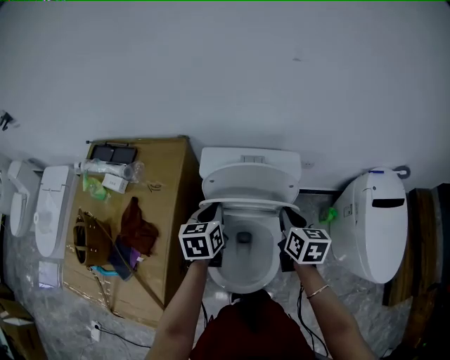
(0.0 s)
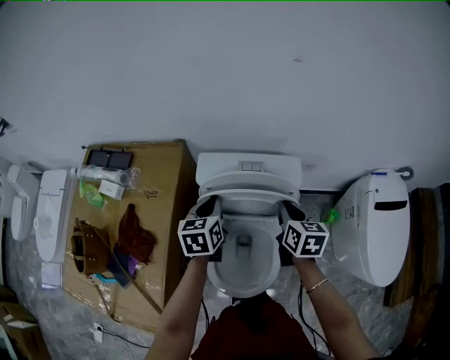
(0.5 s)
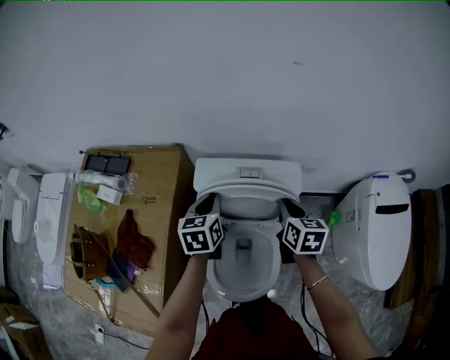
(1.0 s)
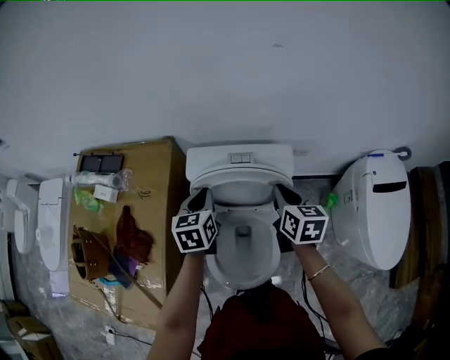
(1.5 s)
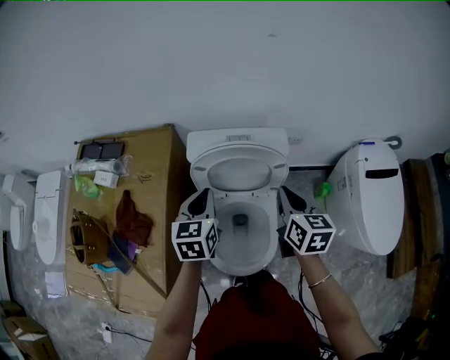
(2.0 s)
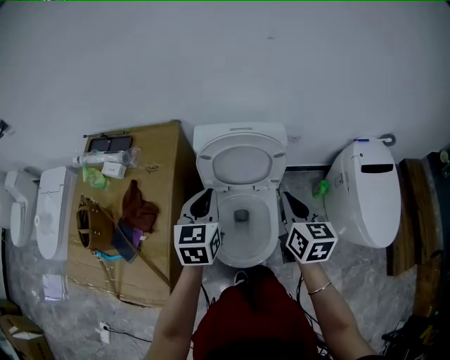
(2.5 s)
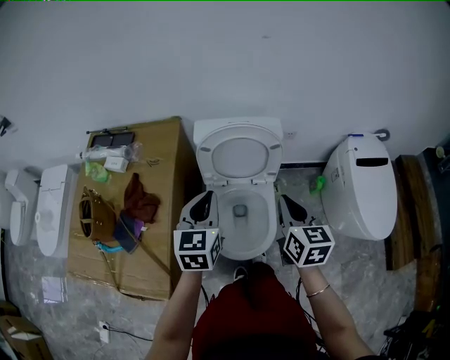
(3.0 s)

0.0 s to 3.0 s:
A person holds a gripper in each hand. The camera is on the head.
0.0 to 1.5 s: The grippers both shift forward by some 5 cm.
1.5 to 3.0 s: The left gripper is displaced backward and upward by approximately 25 cm. The right gripper goes some 25 cm backward.

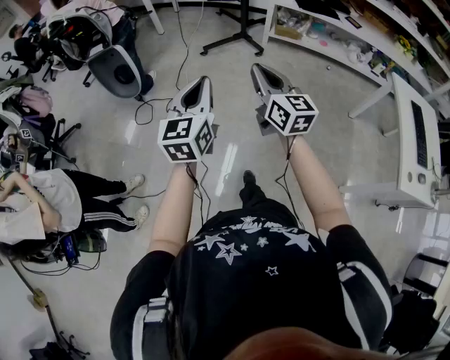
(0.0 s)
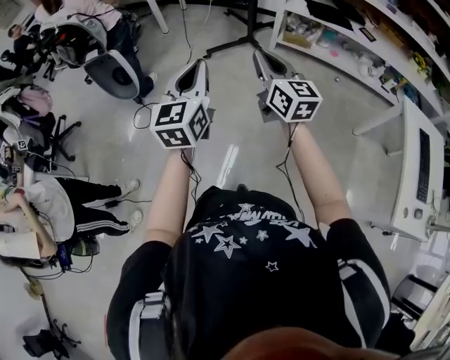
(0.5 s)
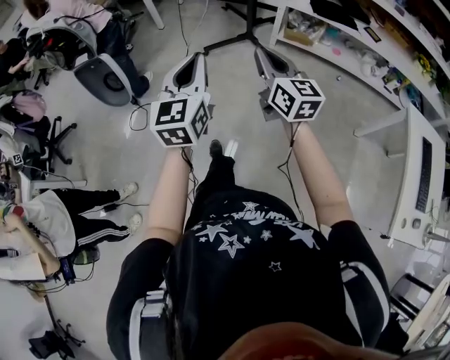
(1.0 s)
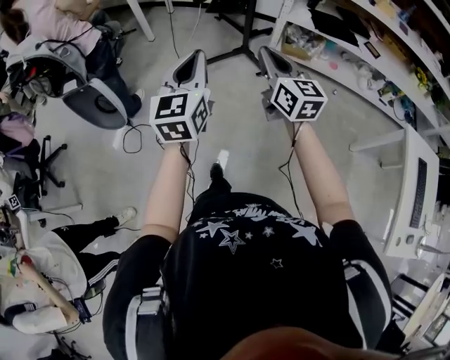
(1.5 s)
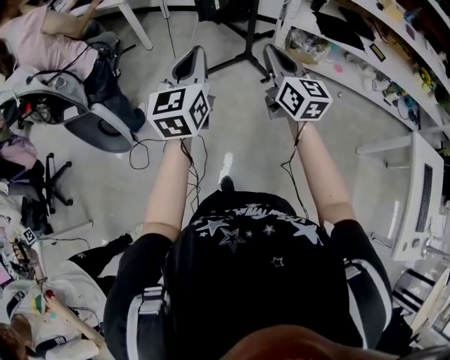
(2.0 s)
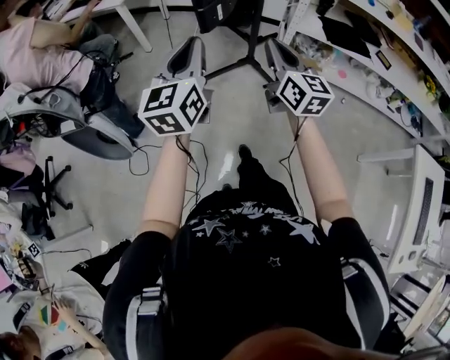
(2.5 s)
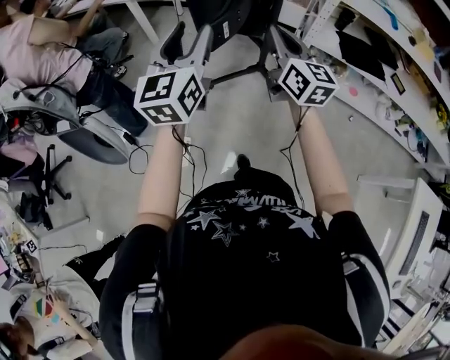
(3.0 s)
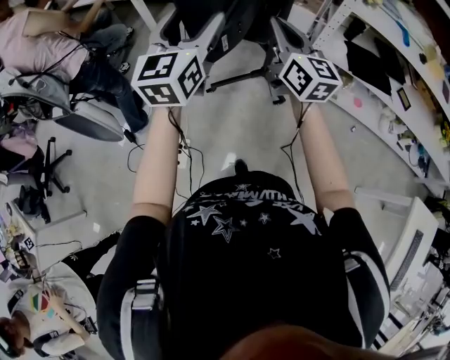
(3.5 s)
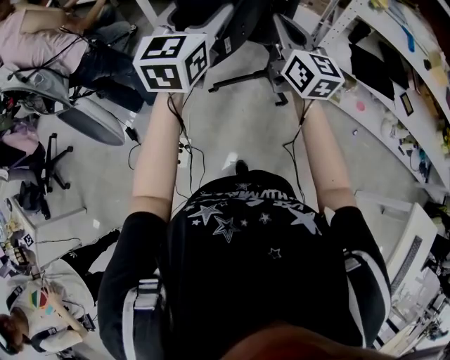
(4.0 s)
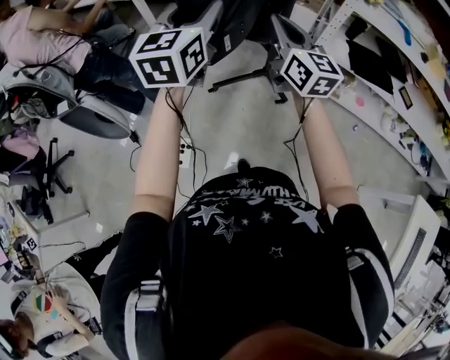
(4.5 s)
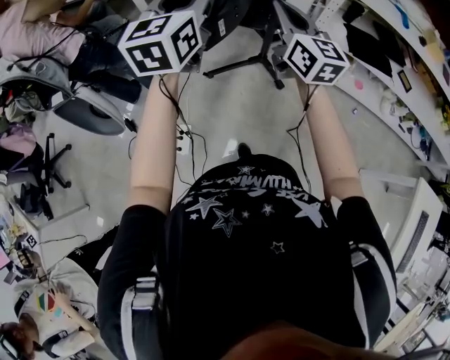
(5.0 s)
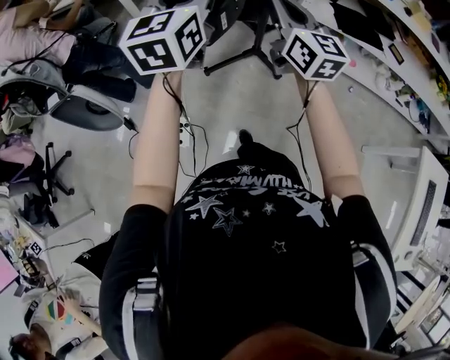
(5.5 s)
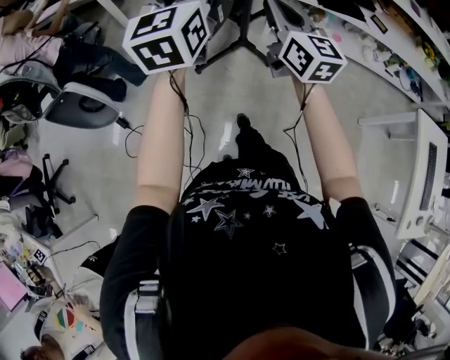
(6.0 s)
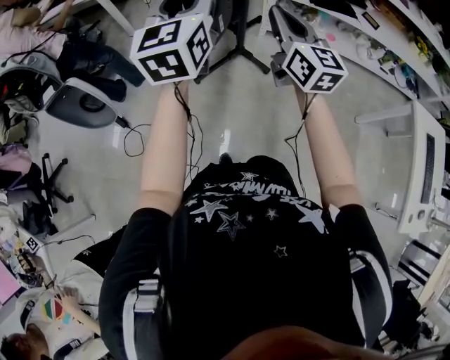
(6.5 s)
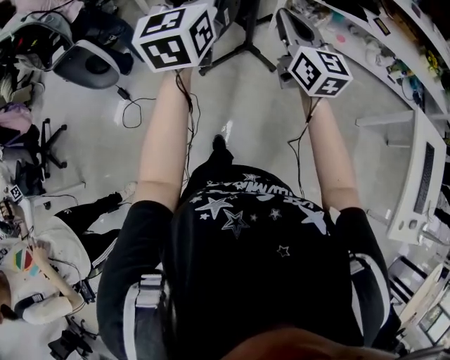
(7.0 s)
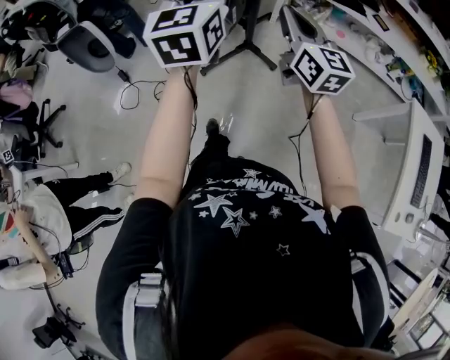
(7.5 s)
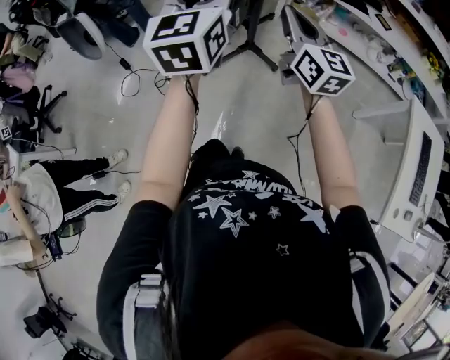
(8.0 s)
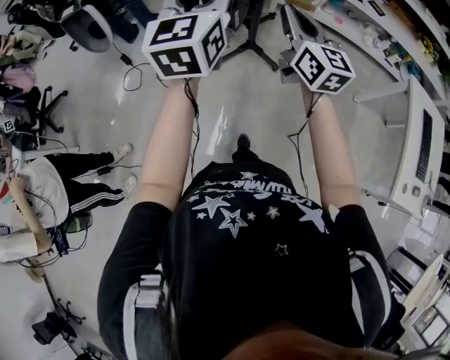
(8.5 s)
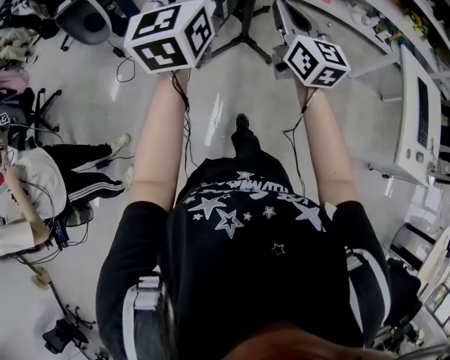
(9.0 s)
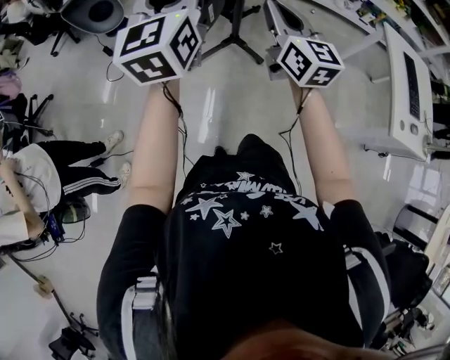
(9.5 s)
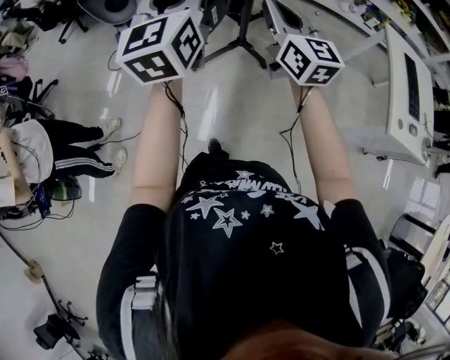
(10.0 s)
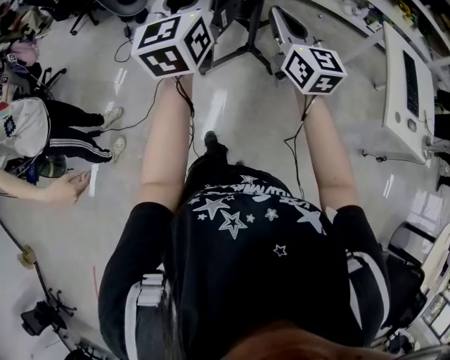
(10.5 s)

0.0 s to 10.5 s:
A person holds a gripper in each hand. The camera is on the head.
0.0 to 2.0 s: The two grippers travel together, forward, approximately 50 cm.
2.0 to 4.0 s: The two grippers go approximately 30 cm forward. The left gripper opens its fingers.
4.0 to 6.5 s: Both grippers travel together backward, approximately 25 cm. The left gripper closes its fingers.
6.5 to 8.5 s: The grippers both shift backward by about 35 cm.
8.5 to 10.5 s: Both grippers move backward, approximately 35 cm.

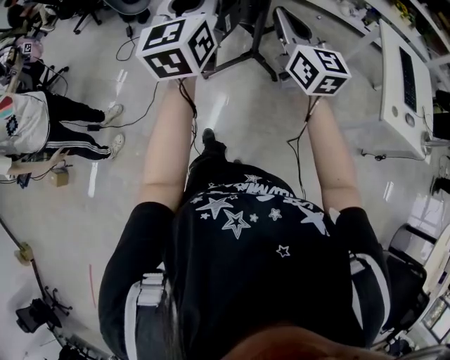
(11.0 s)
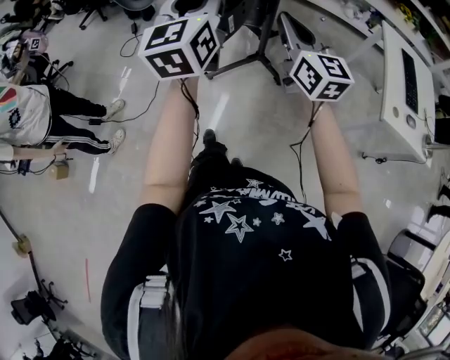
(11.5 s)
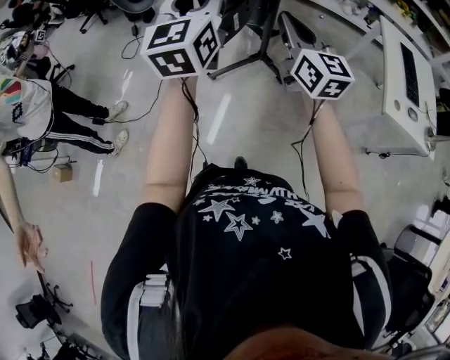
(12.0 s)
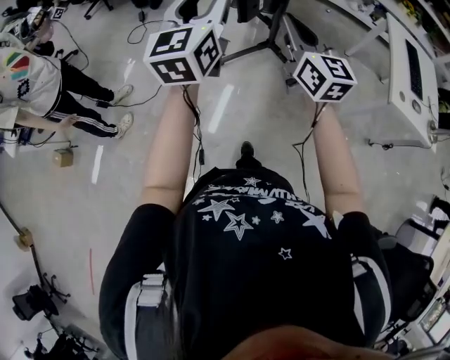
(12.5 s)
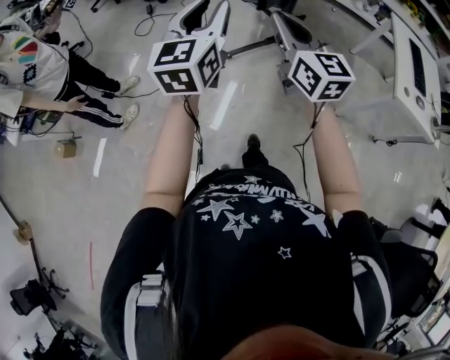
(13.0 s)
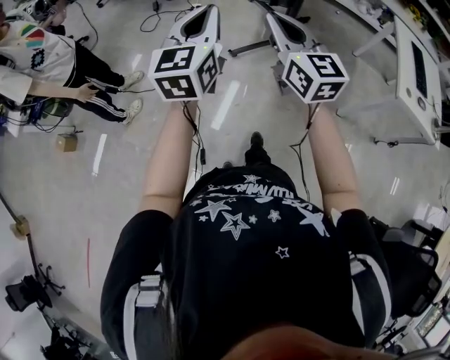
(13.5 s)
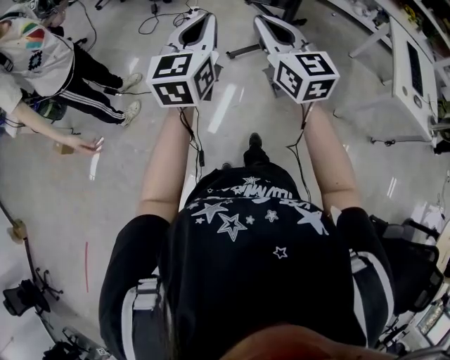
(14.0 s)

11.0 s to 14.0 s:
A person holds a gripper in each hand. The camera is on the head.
11.0 to 12.5 s: The two grippers go about 10 cm backward.
12.5 to 14.0 s: The right gripper moves to the left and backward, approximately 20 cm. The left gripper goes about 15 cm to the left, backward and downward, and closes up.

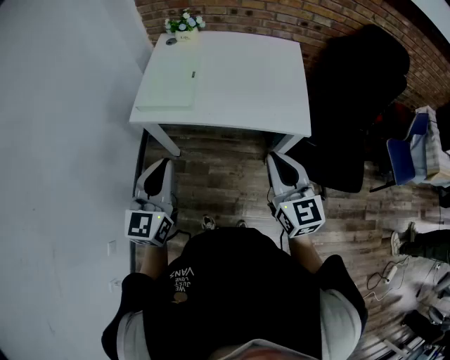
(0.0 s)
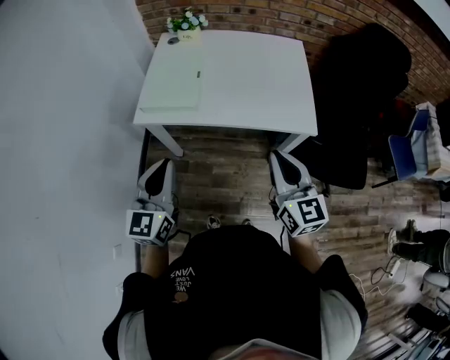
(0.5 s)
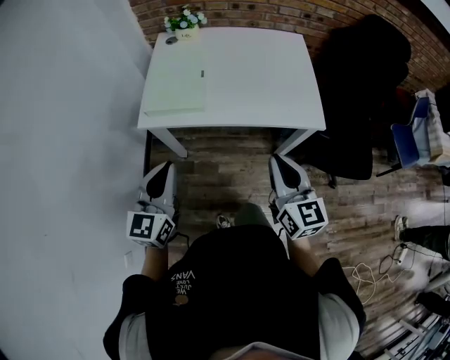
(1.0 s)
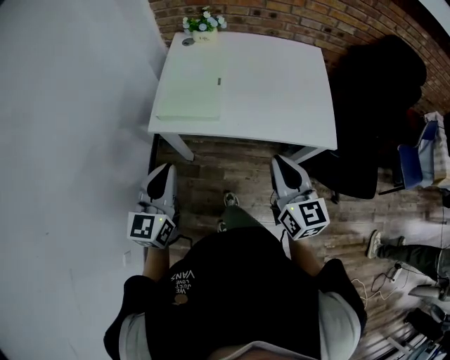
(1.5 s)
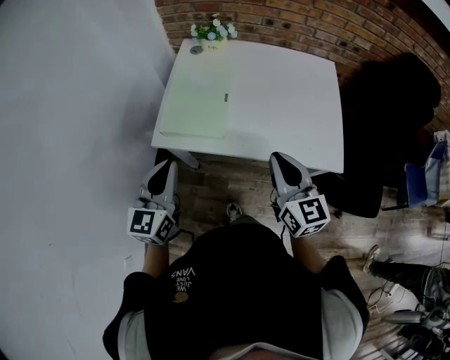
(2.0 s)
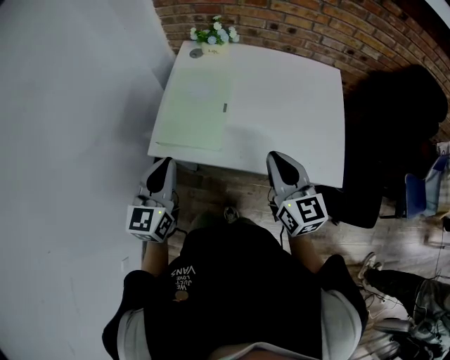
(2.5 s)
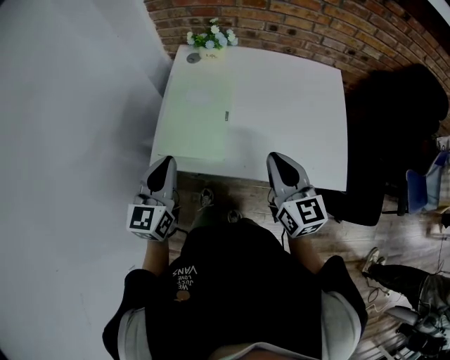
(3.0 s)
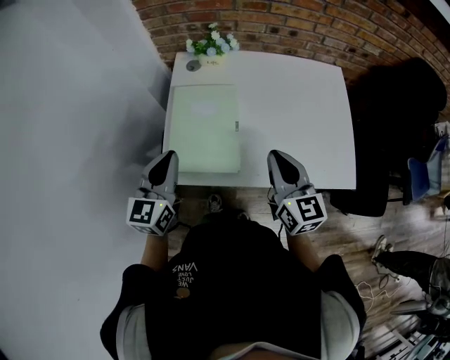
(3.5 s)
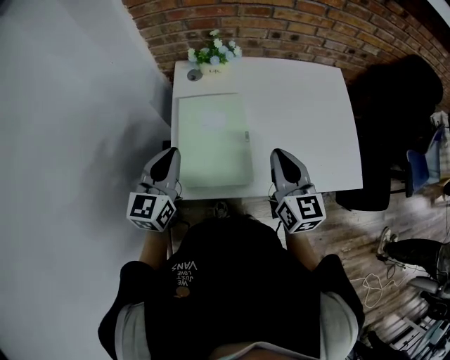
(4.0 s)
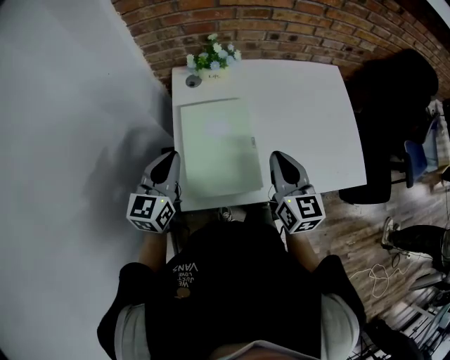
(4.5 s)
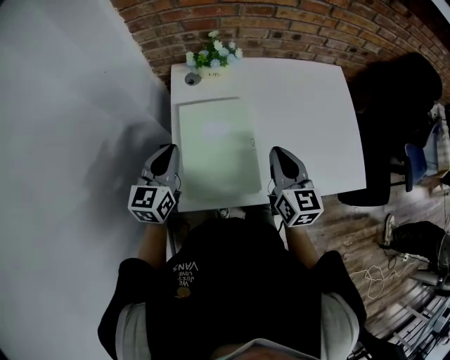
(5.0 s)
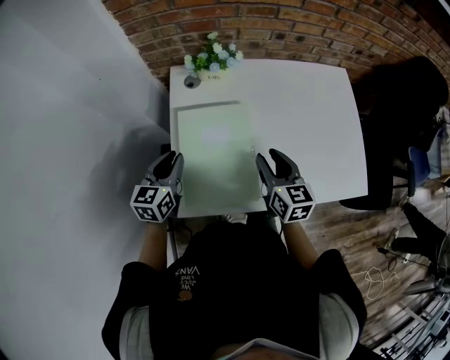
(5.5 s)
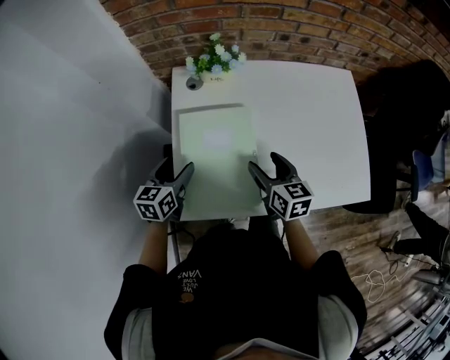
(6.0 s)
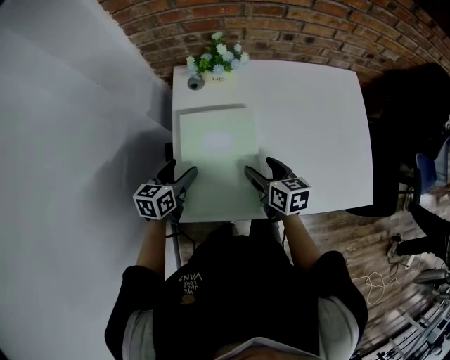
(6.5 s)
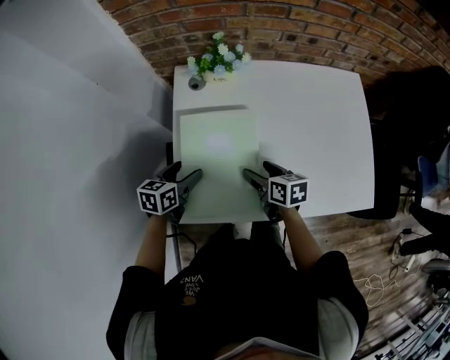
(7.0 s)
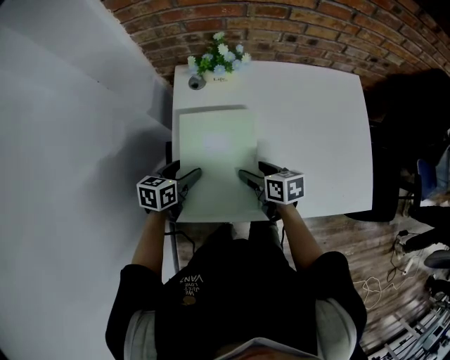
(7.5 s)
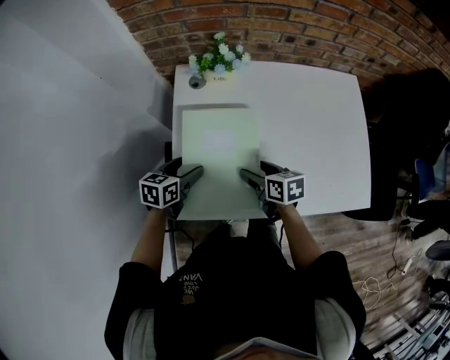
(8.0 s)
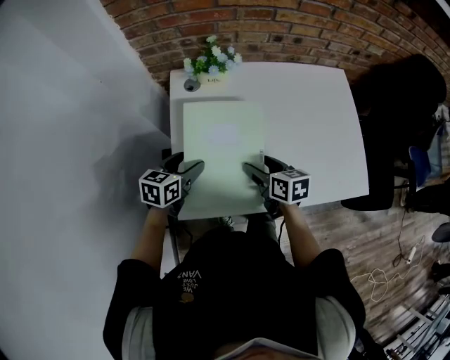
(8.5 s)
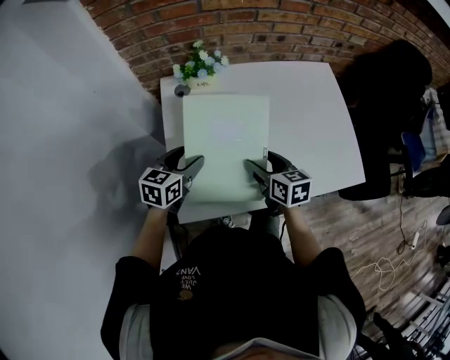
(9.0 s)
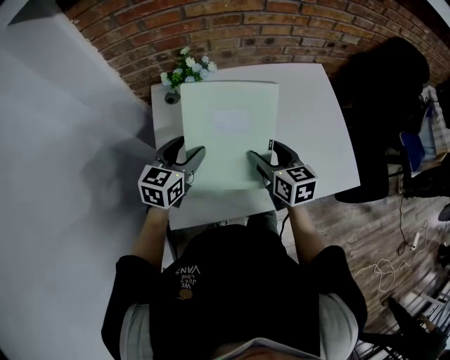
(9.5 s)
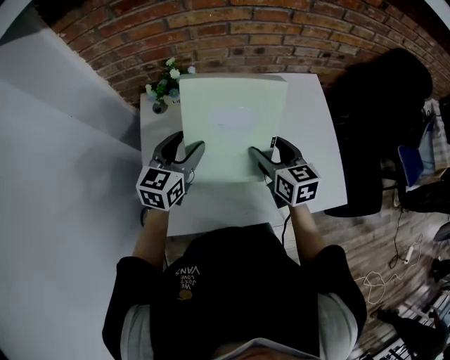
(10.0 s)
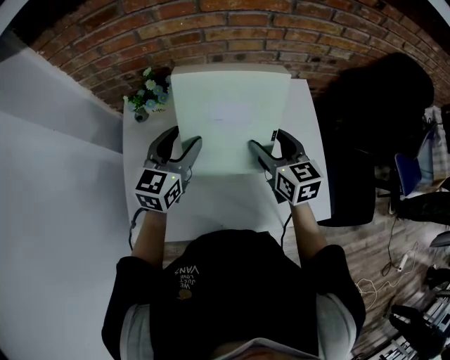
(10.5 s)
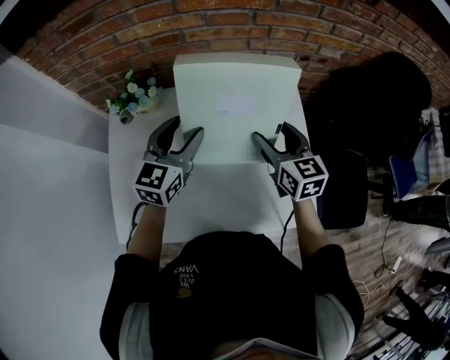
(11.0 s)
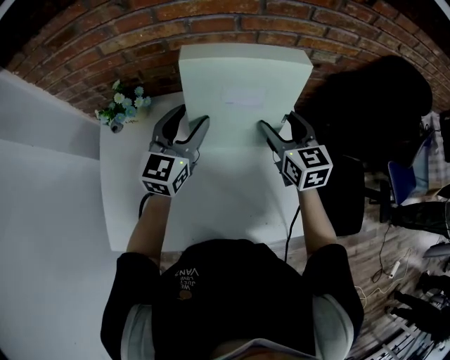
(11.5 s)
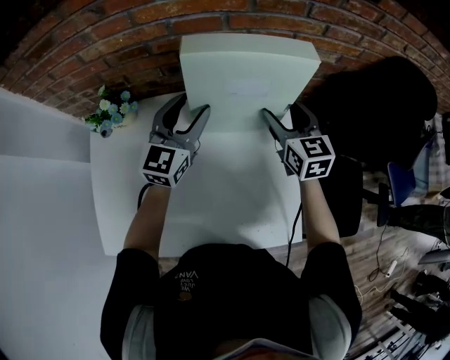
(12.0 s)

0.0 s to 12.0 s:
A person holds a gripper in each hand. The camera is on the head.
0.0 to 2.0 s: The two grippers go approximately 20 cm forward and to the left.
2.0 to 4.0 s: The right gripper goes some 20 cm forward and to the left. The left gripper shifts about 25 cm forward.
4.0 to 6.0 s: Both grippers move downward and forward, some 15 cm. The right gripper turns by approximately 20 degrees, and opens up; the left gripper swivels roughly 20 degrees, and opens up.
6.0 to 8.0 s: The left gripper shifts by roughly 5 cm. The right gripper heads downward, covering roughly 5 cm, and rotates approximately 20 degrees.
8.0 to 10.0 s: The left gripper moves upward, to the right and forward, roughly 25 cm, and changes its angle by some 30 degrees. Meanwhile the right gripper goes about 20 cm to the right, upward and forward, and rotates approximately 30 degrees.
10.0 to 12.0 s: The grippers both shift to the right and forward by approximately 30 cm.
